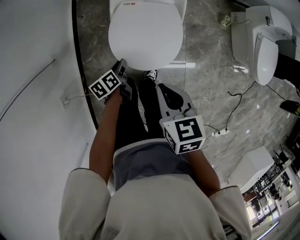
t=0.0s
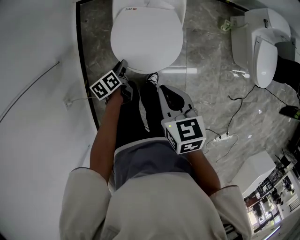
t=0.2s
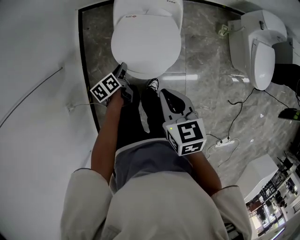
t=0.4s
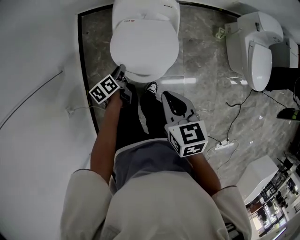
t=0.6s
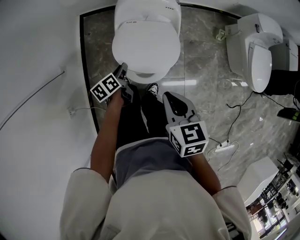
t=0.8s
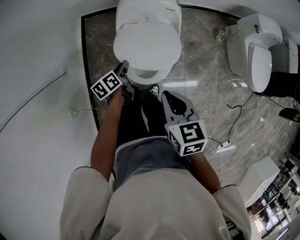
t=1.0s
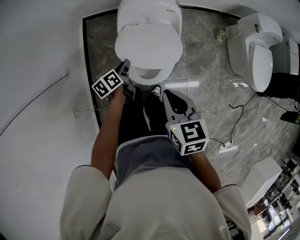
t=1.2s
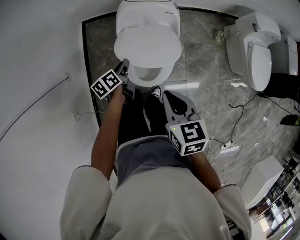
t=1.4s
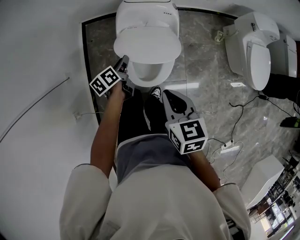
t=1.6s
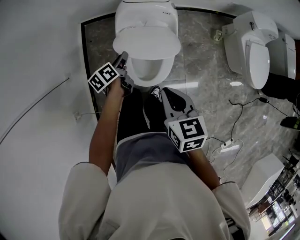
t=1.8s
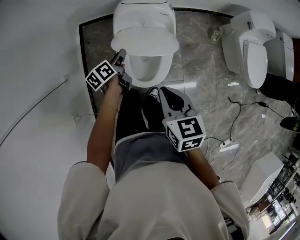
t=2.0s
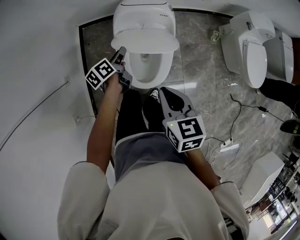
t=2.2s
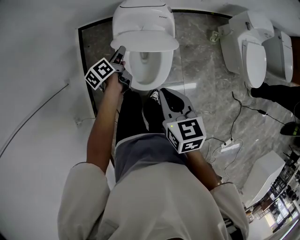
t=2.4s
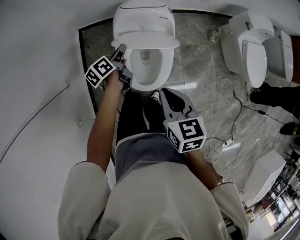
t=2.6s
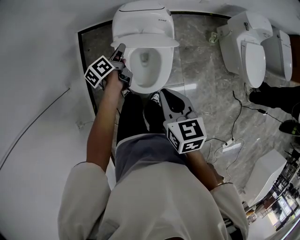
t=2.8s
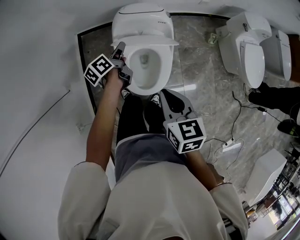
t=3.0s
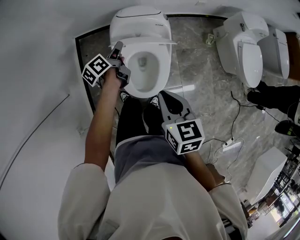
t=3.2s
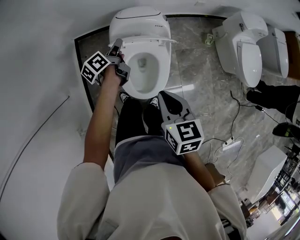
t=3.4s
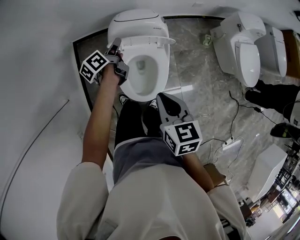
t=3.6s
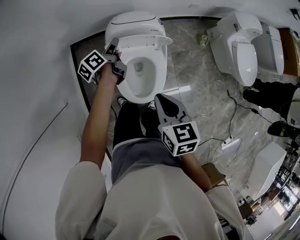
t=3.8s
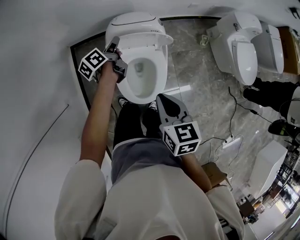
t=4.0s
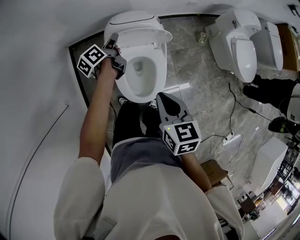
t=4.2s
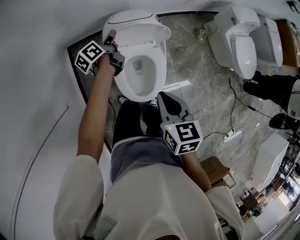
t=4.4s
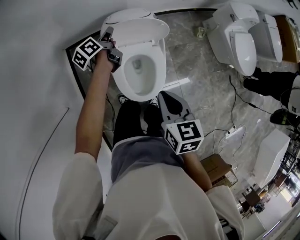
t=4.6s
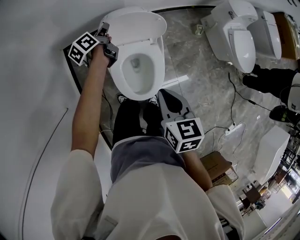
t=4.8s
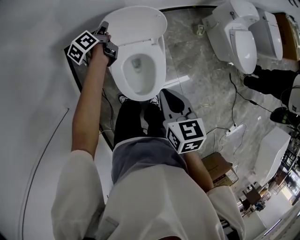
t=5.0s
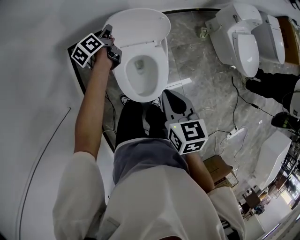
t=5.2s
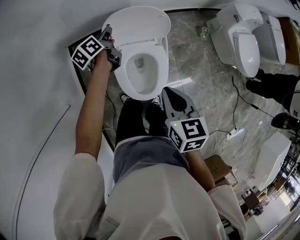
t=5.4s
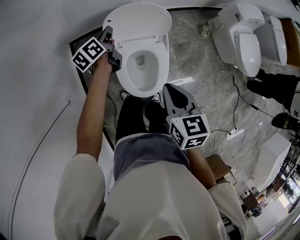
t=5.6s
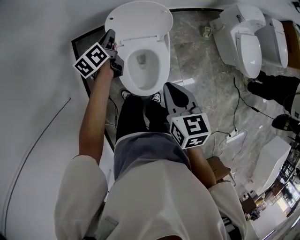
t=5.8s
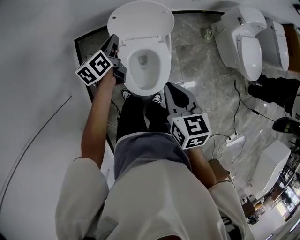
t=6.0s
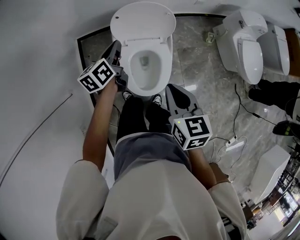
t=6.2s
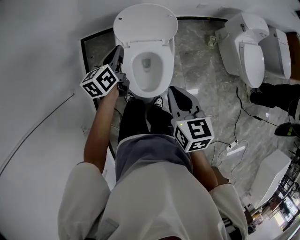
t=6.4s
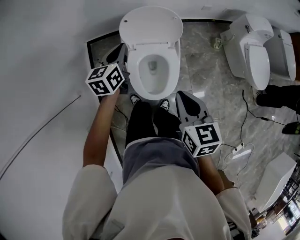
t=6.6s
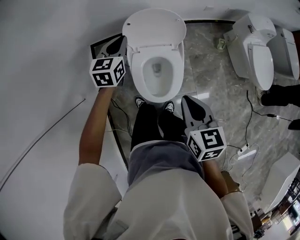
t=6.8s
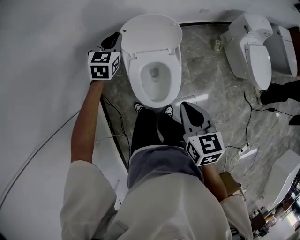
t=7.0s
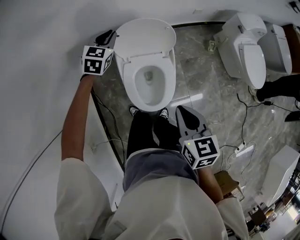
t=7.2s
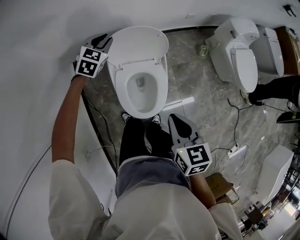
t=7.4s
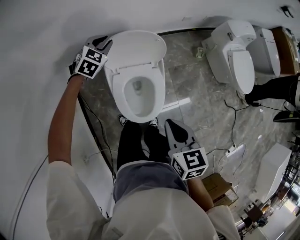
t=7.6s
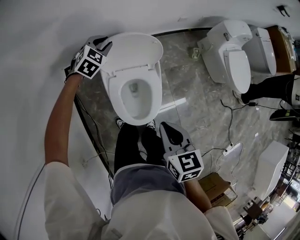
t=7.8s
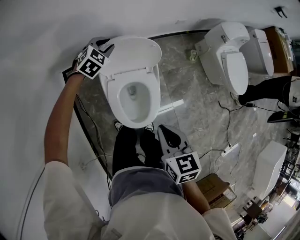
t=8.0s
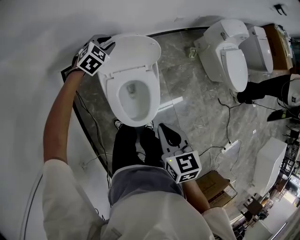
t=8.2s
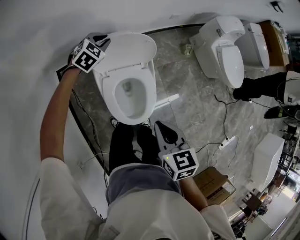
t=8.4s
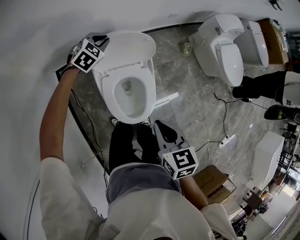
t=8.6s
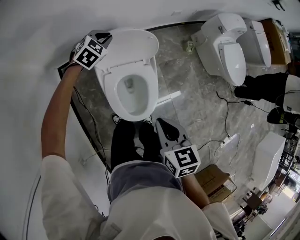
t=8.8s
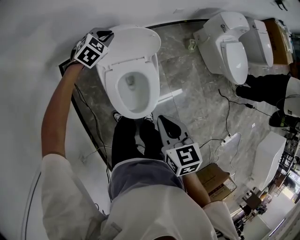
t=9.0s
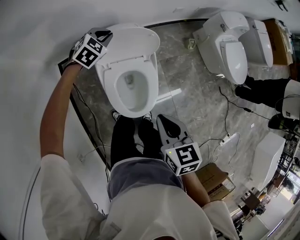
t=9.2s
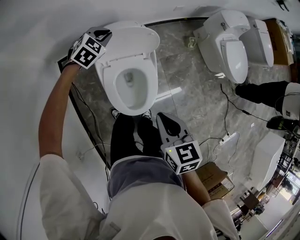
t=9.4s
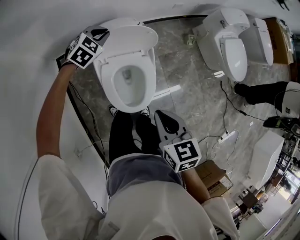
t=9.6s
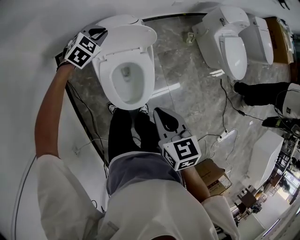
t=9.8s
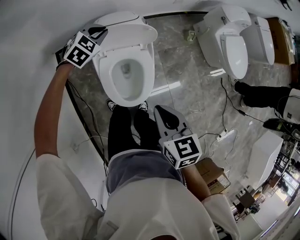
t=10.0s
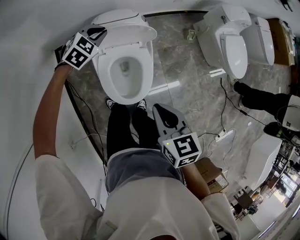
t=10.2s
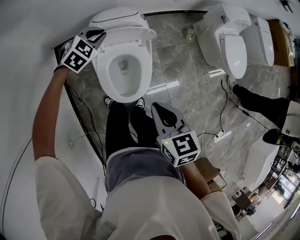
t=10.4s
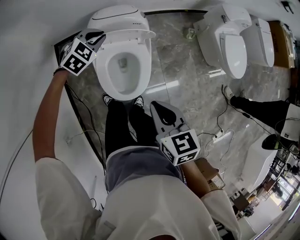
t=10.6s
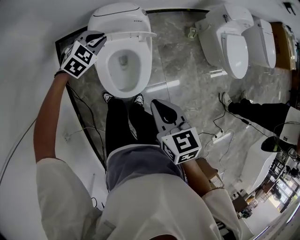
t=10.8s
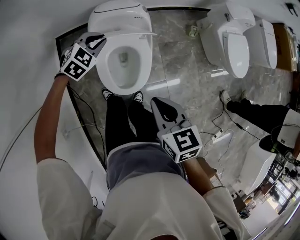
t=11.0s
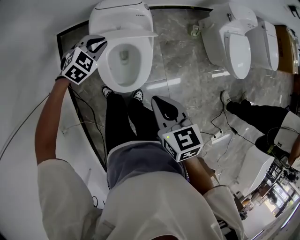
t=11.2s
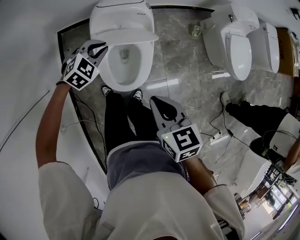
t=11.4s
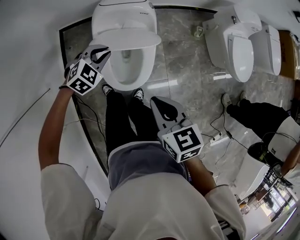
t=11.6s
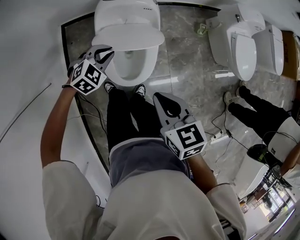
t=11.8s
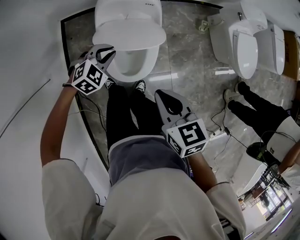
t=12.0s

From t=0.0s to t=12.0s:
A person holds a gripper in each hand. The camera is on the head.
From t=0.0s to t=1.6s: The left gripper goes roughly 15 cm upward and forward; the right gripper heads upward, covering about 10 cm.
From t=1.6s to t=3.0s: The left gripper moves forward and upward, some 15 cm. The right gripper moves about 5 cm.
From t=3.0s to t=4.4s: The left gripper moves forward, some 10 cm.
From t=4.4s to t=6.0s: The left gripper heads backward and upward, covering approximately 10 cm, and changes its angle by about 20 degrees.
From t=6.0s to t=7.6s: The left gripper is displaced forward by roughly 15 cm, and twists approximately 70 degrees clockwise, seen from behind.
From t=7.6s to t=9.0s: The grippers make only small movements.
From t=9.0s to t=10.4s: The left gripper goes some 10 cm backward. Meanwhile the right gripper shifts by some 5 cm.
From t=10.4s to t=12.0s: The left gripper travels backward by some 20 cm.

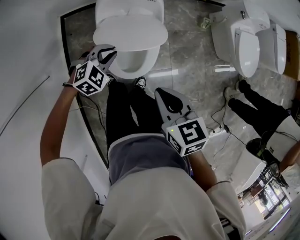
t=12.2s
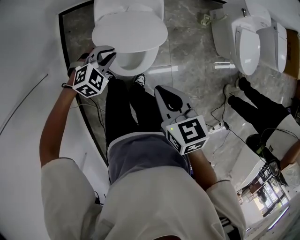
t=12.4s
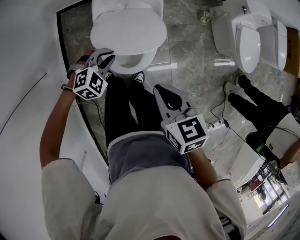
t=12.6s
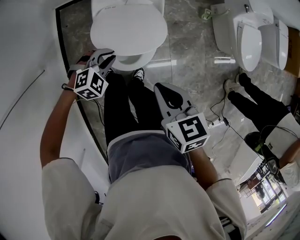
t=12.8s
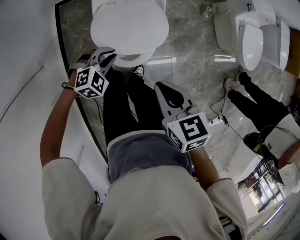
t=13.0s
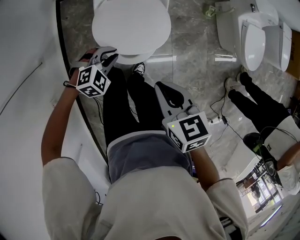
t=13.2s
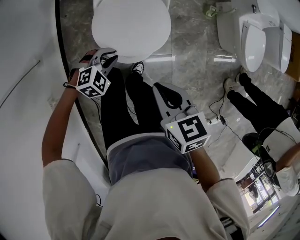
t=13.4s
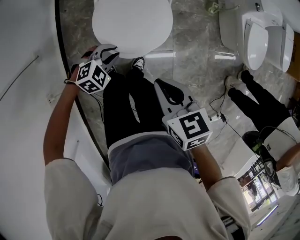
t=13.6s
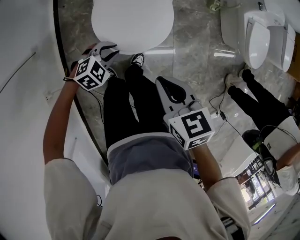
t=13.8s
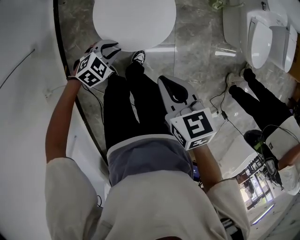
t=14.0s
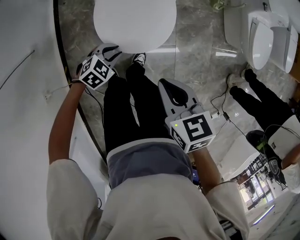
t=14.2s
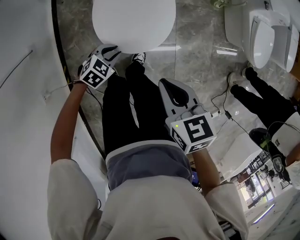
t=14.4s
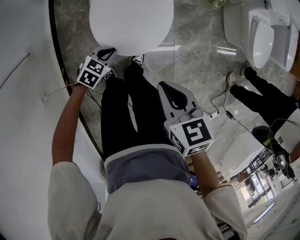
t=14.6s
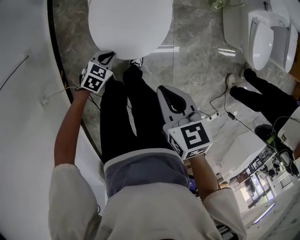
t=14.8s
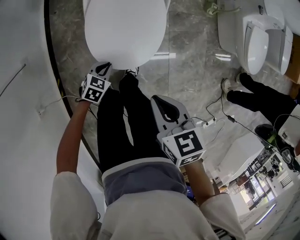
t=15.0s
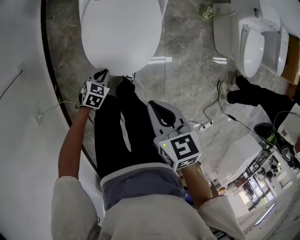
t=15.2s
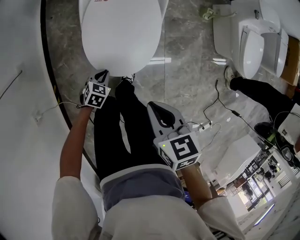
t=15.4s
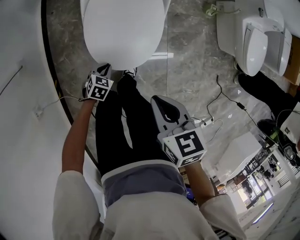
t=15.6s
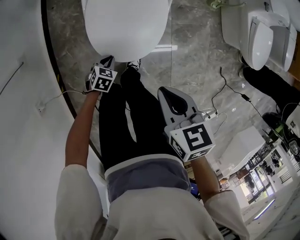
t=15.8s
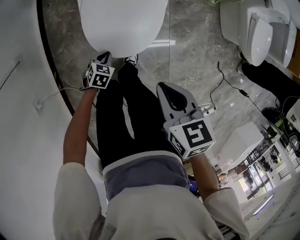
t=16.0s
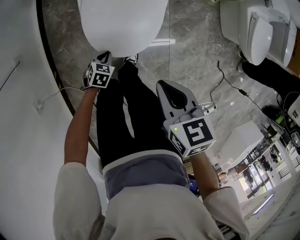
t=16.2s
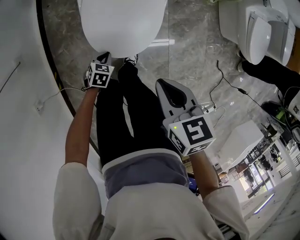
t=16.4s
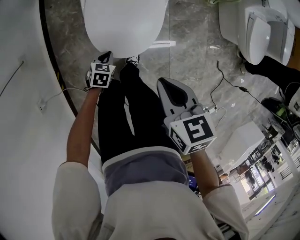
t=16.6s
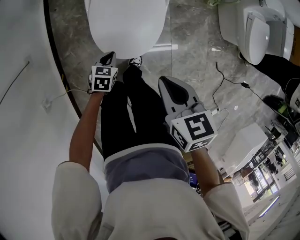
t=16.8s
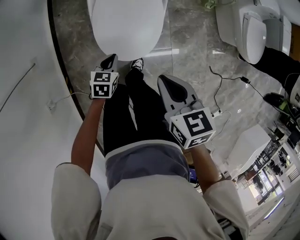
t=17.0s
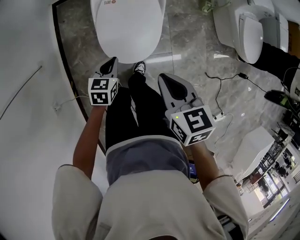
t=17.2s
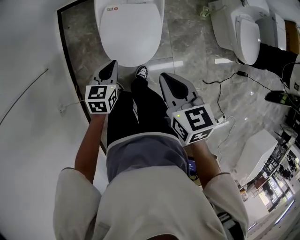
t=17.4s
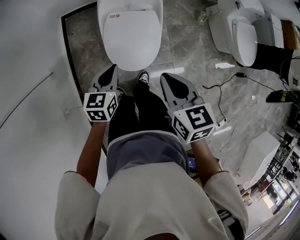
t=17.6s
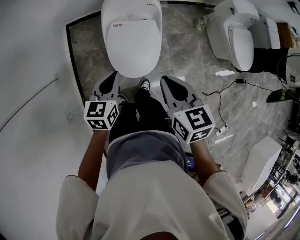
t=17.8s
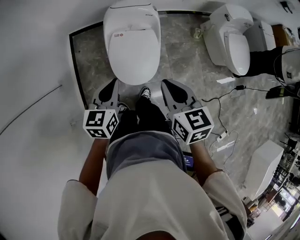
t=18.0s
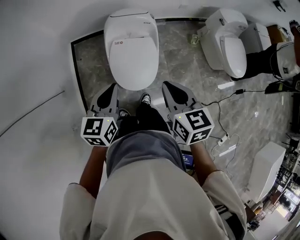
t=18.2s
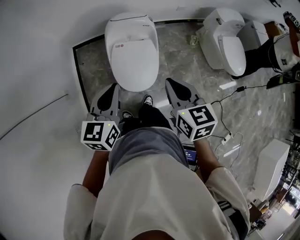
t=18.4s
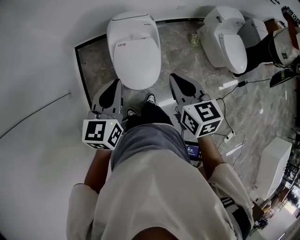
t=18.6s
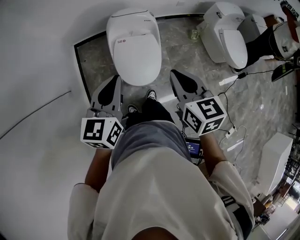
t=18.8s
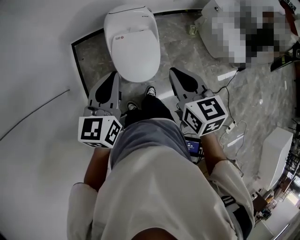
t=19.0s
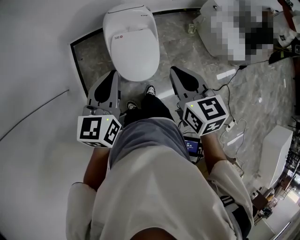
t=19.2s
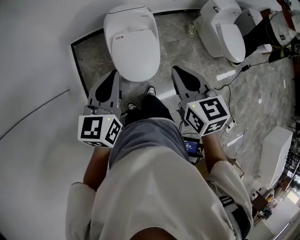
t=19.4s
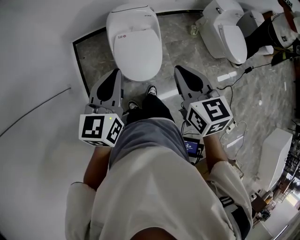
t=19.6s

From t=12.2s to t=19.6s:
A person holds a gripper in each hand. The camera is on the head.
From t=12.2s to t=13.6s: The left gripper is displaced downward and backward by about 15 cm. The right gripper moves downward, approximately 5 cm.
From t=13.6s to t=15.2s: The right gripper shifts some 10 cm downward, while the left gripper moves downward, approximately 15 cm, and changes its angle by about 40 degrees.
From t=15.2s to t=16.6s: The grippers stay close to where they were, moving slightly.
From t=16.6s to t=18.2s: The left gripper travels upward by roughly 50 cm, and angles its fingers upward, by approximately 40 degrees; the right gripper travels upward by approximately 25 cm, and changes its angle by some 20 degrees.
From t=18.2s to t=19.6s: The left gripper moves upward, about 10 cm, while the right gripper is displaced upward by some 5 cm.

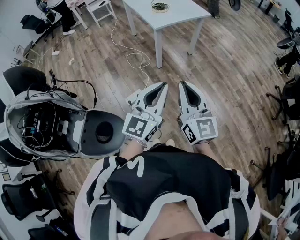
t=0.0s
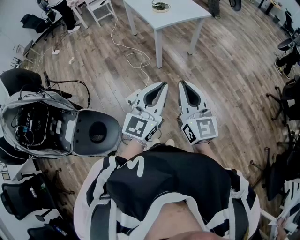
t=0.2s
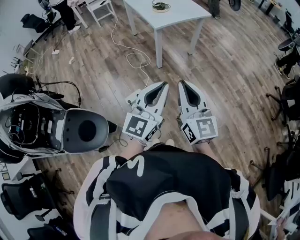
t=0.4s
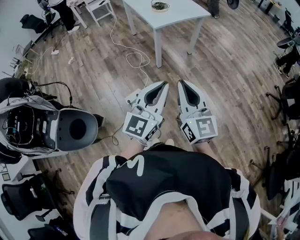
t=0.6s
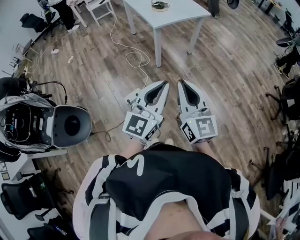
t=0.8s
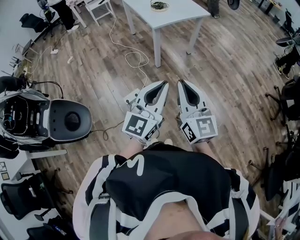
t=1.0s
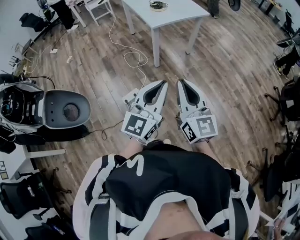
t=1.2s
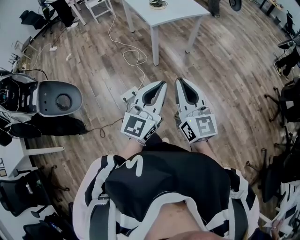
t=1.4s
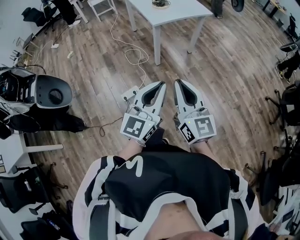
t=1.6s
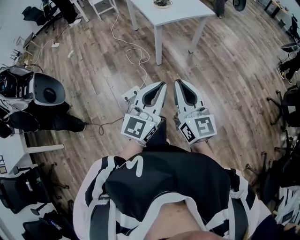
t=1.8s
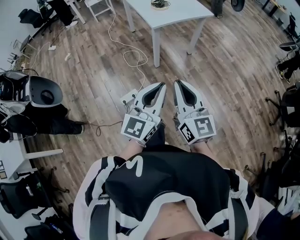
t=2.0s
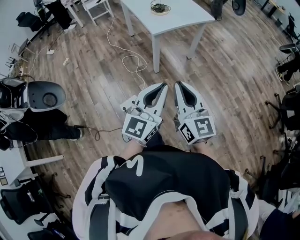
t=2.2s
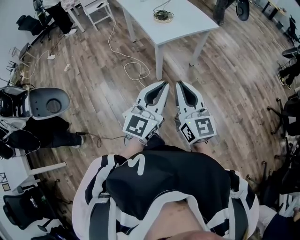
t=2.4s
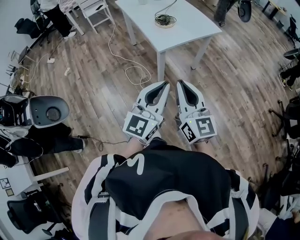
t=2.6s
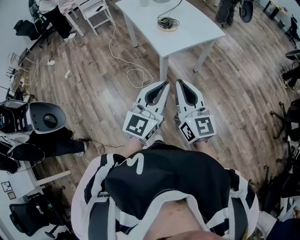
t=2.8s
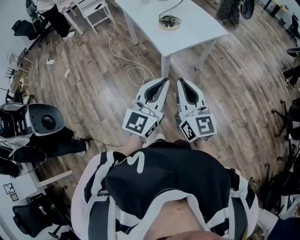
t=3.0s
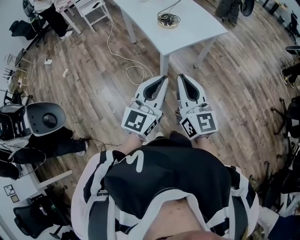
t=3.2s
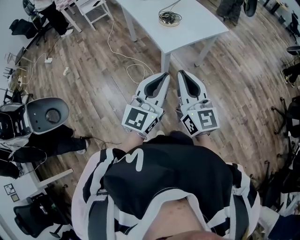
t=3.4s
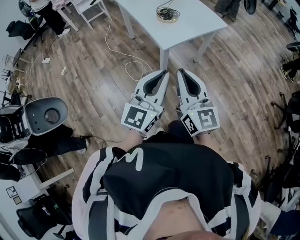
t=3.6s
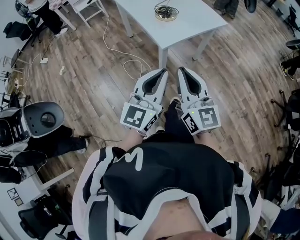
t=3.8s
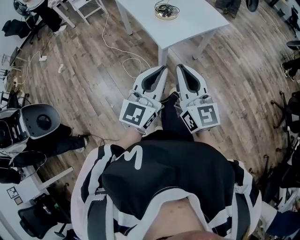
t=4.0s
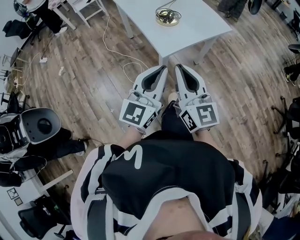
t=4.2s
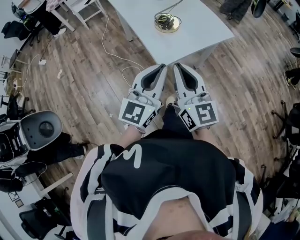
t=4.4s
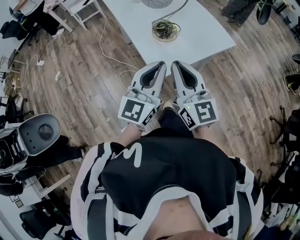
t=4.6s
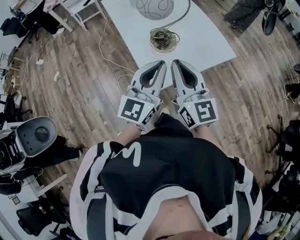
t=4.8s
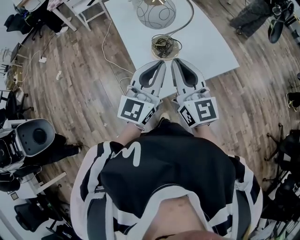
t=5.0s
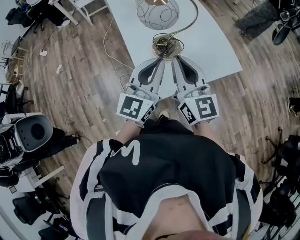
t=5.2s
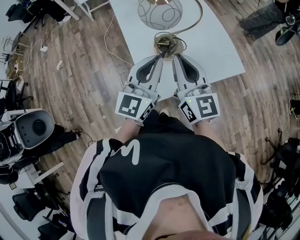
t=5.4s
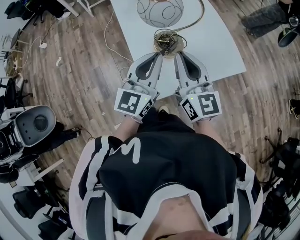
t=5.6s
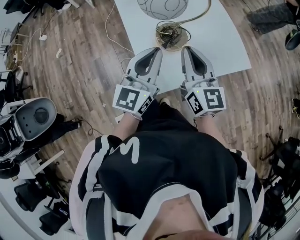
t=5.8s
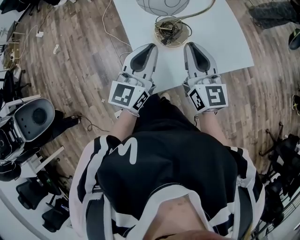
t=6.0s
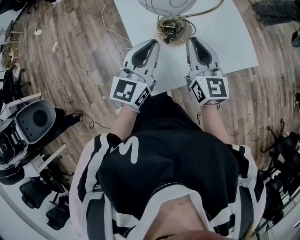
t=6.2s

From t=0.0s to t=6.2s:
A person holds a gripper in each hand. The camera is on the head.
From t=0.0s to t=1.6s: The grippers make only small movements.
From t=1.6s to t=3.2s: Both grippers move forward, approximately 30 cm.
From t=3.2s to t=4.6s: Both grippers travel together forward, some 25 cm.
From t=4.6s to t=6.2s: Both grippers travel together forward and downward, roughly 25 cm.
